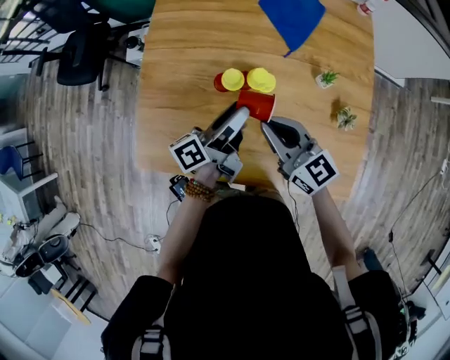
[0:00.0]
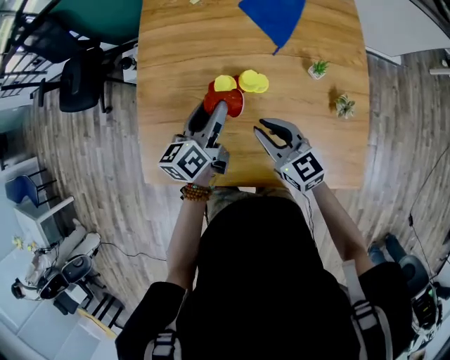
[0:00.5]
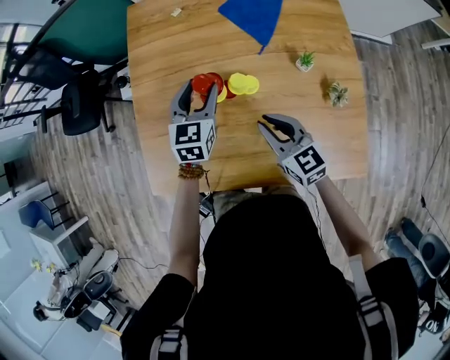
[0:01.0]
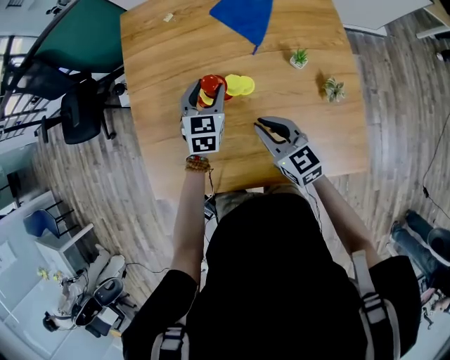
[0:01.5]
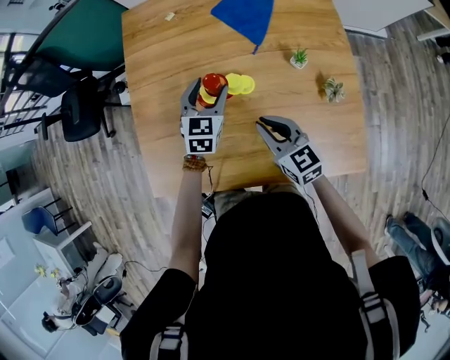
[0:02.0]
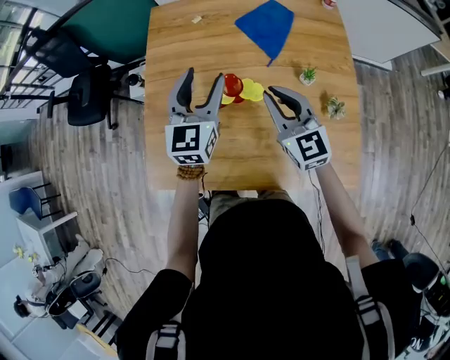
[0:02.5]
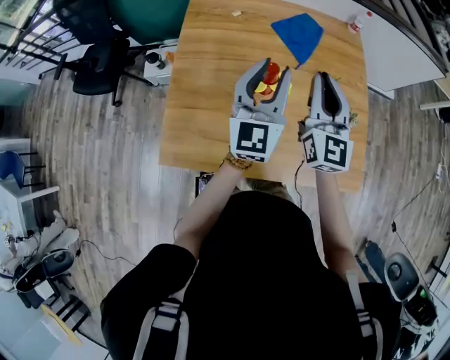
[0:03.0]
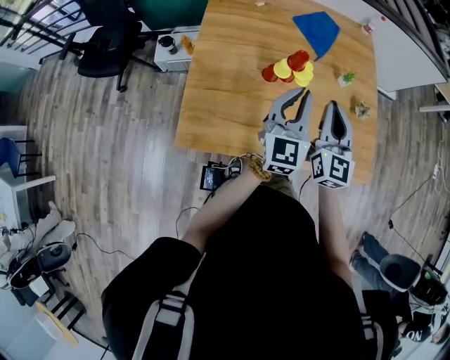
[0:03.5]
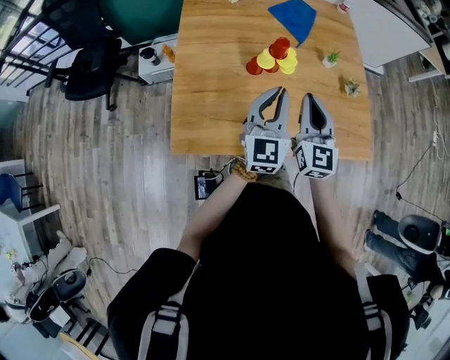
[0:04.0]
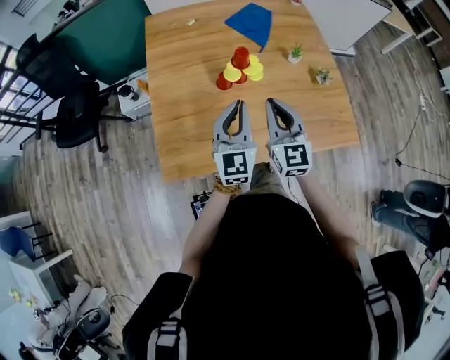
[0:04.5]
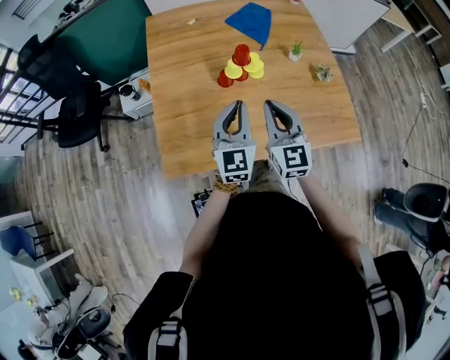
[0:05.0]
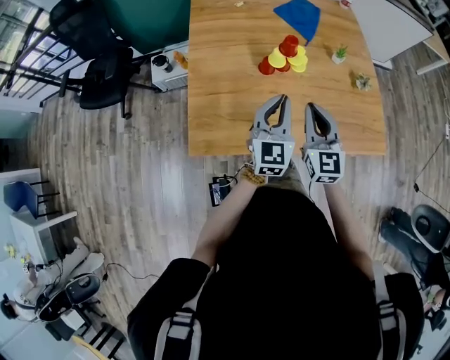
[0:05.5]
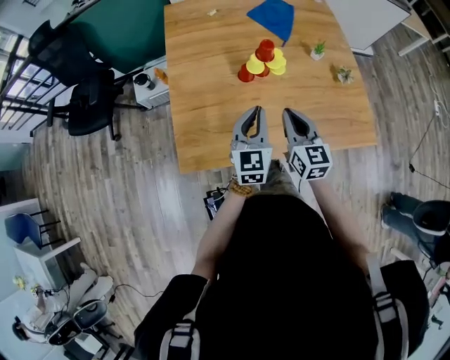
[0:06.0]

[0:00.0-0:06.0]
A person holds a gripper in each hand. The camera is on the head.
0:00.0 to 0:02.0: The right gripper goes some 5 cm downward, and rotates some 20 degrees; the left gripper goes about 10 cm forward, and rotates around the line of its fingers by about 80 degrees, clockwise from behind.
0:02.0 to 0:04.0: The left gripper travels backward and upward by approximately 25 cm, angles its fingers upward, by approximately 30 degrees, and closes up. Meanwhile the right gripper shifts some 20 cm upward, to the left and backward, and rotates roughly 40 degrees.
0:04.0 to 0:06.0: Both grippers travel together downward, some 10 cm.

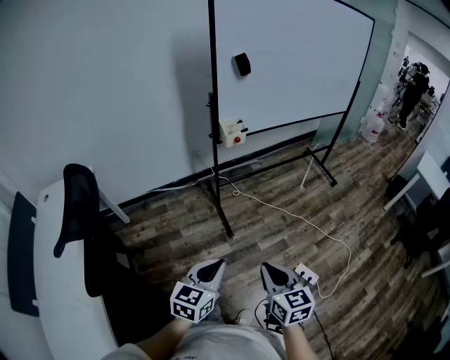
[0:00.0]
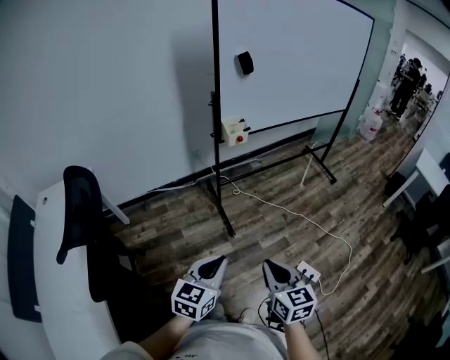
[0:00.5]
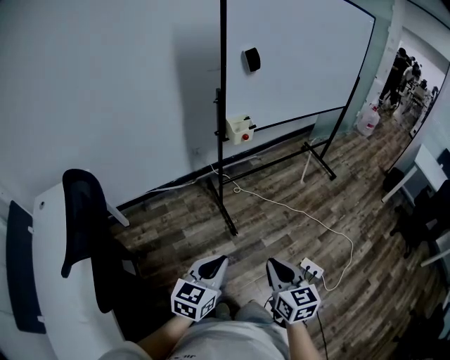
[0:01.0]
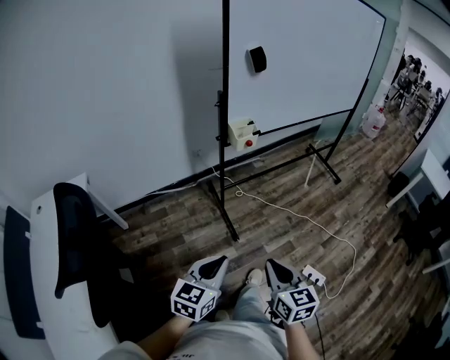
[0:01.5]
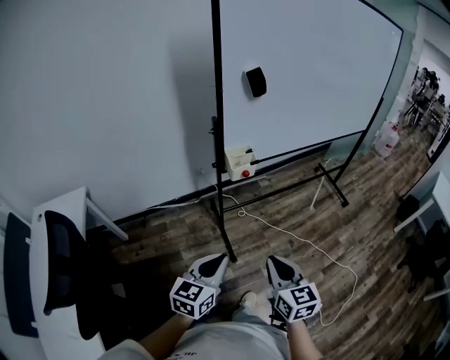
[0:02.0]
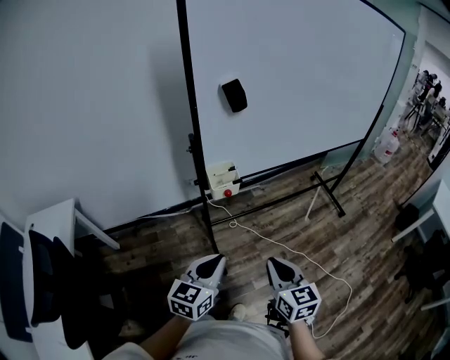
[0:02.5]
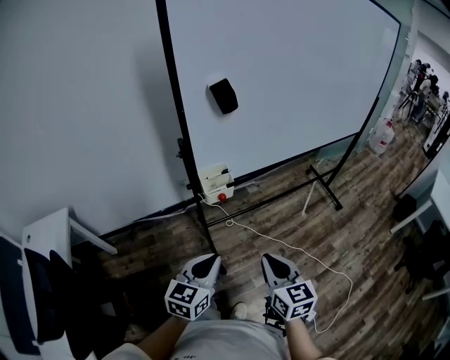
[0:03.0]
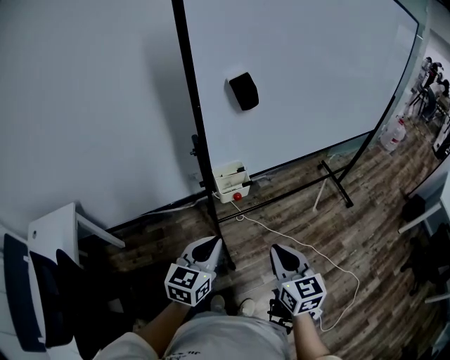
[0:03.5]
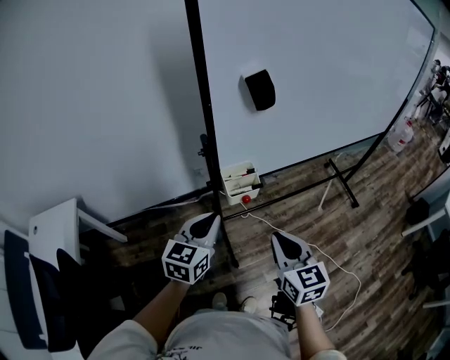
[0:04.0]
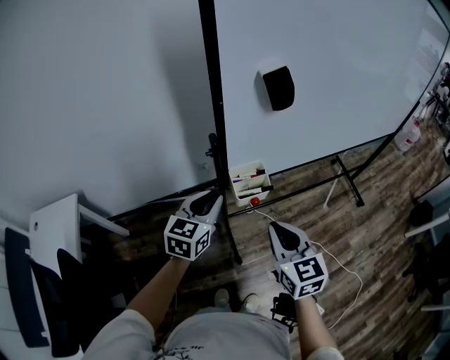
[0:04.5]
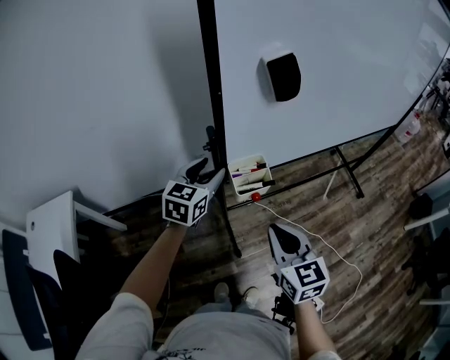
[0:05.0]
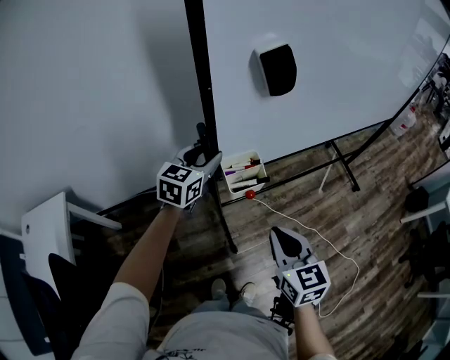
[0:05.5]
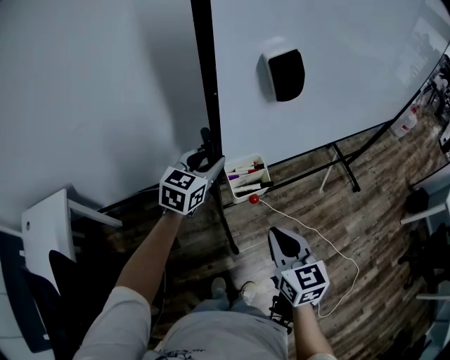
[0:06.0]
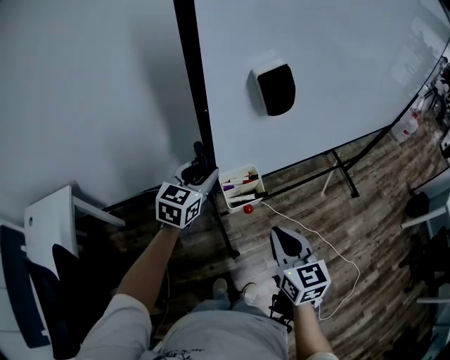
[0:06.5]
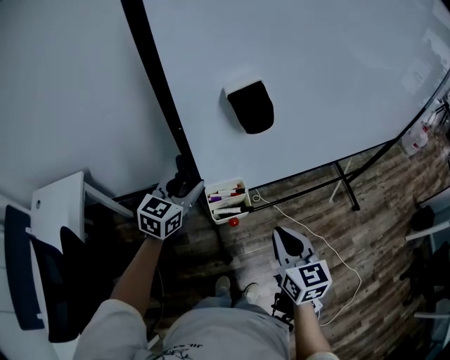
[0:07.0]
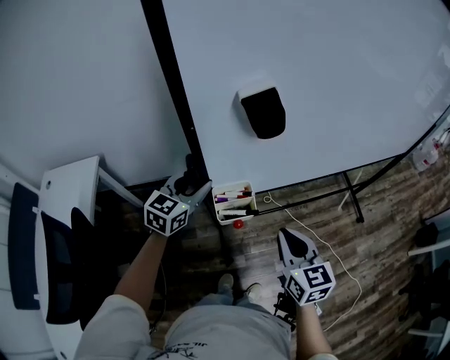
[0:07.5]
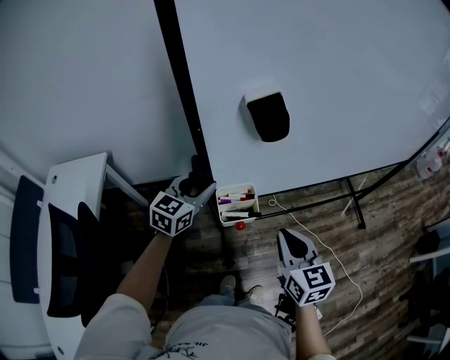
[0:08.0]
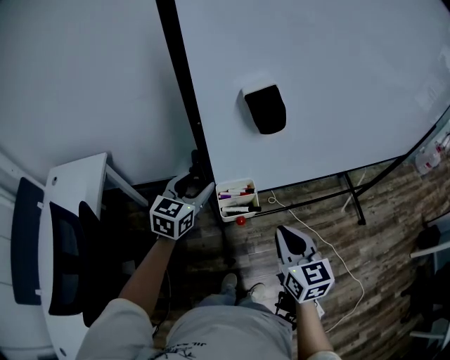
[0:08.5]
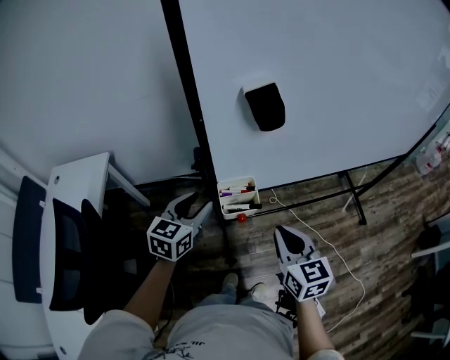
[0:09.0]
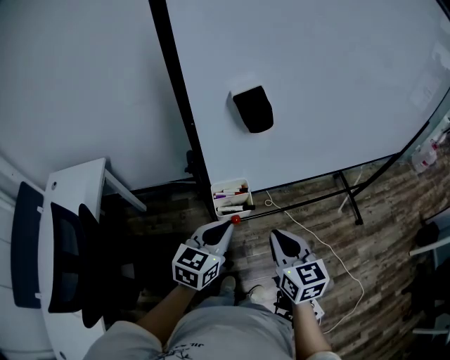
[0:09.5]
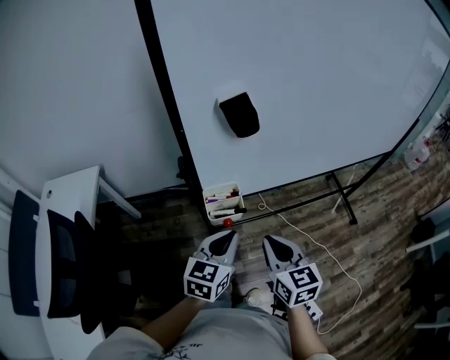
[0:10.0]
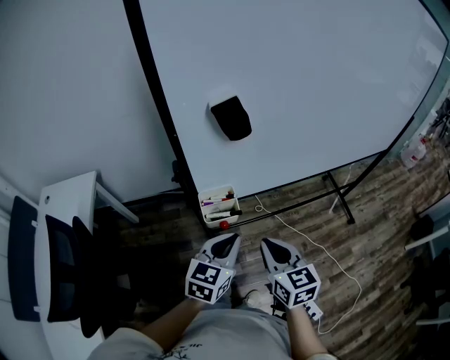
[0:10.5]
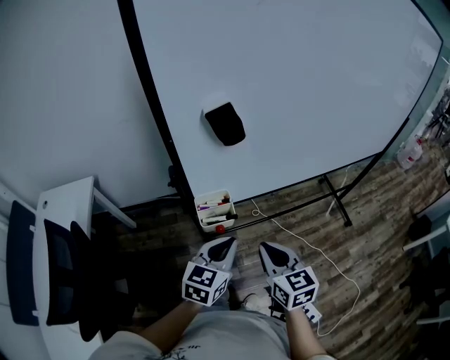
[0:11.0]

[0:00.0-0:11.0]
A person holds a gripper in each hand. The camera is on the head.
0:00.0 to 0:02.0: Both grippers travel together forward, roughly 25 cm.
0:02.0 to 0:03.5: The grippers both shift forward by about 20 cm.
0:03.5 to 0:05.5: The left gripper is displaced forward by roughly 30 cm, and opens; the right gripper shifts some 10 cm forward.
0:05.5 to 0:07.5: The left gripper moves backward and to the left, some 25 cm. The right gripper is displaced to the left and backward by some 10 cm.
0:07.5 to 0:09.0: The left gripper goes some 10 cm backward.
0:09.0 to 0:11.0: The left gripper heads to the right and backward, covering about 20 cm, and closes up.

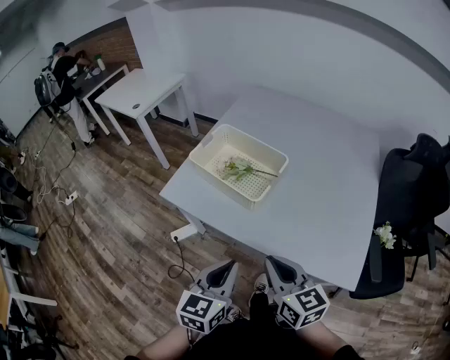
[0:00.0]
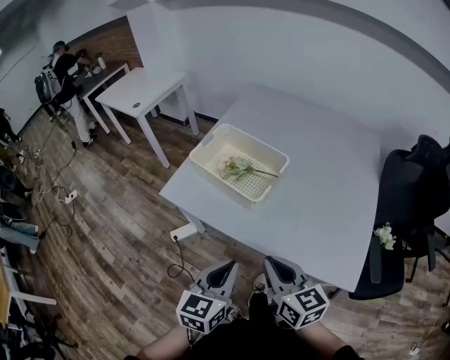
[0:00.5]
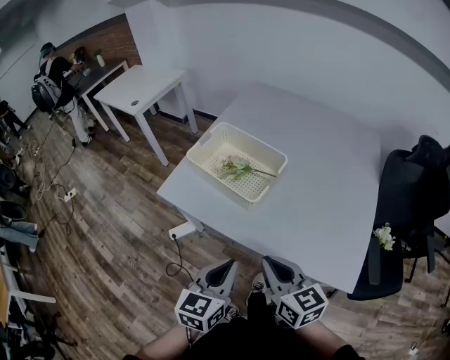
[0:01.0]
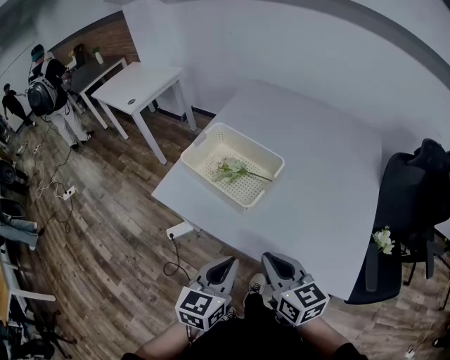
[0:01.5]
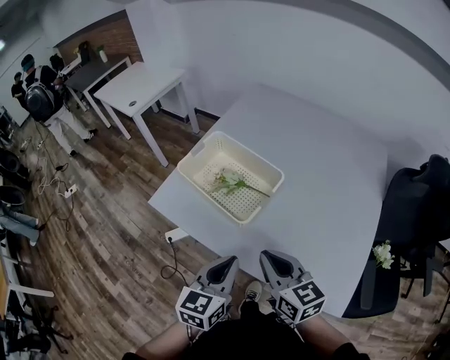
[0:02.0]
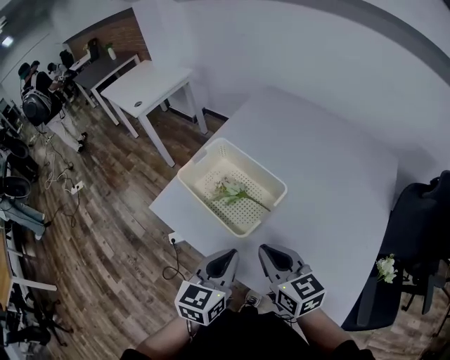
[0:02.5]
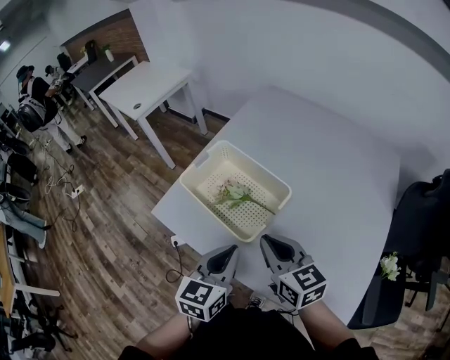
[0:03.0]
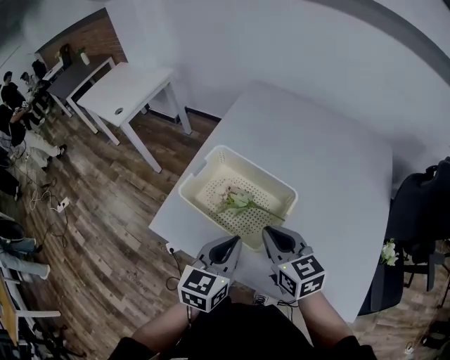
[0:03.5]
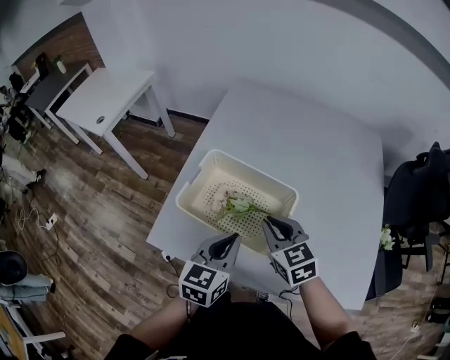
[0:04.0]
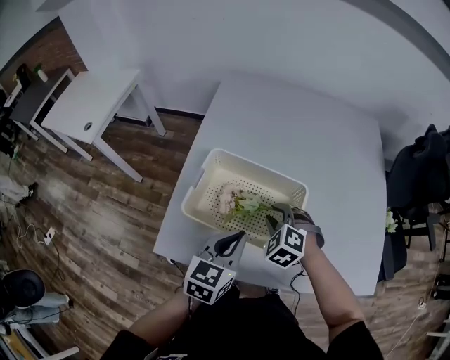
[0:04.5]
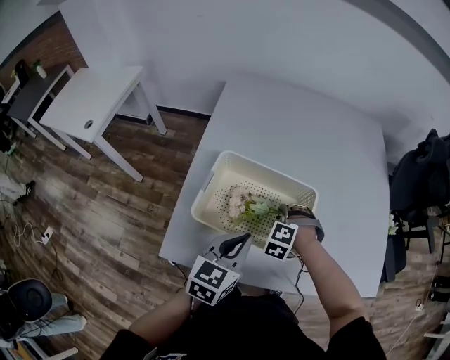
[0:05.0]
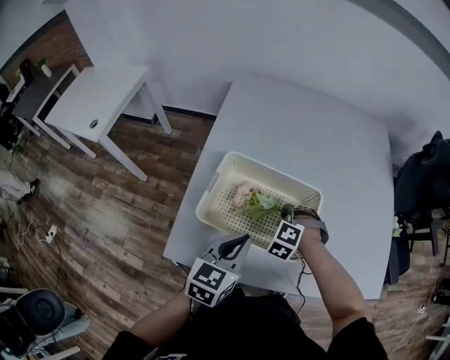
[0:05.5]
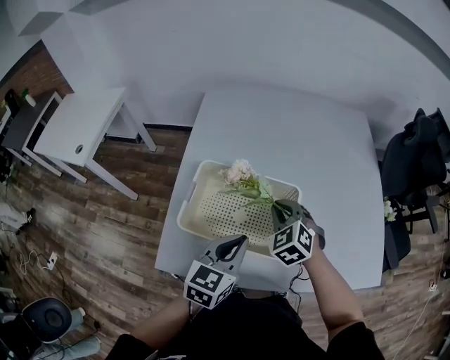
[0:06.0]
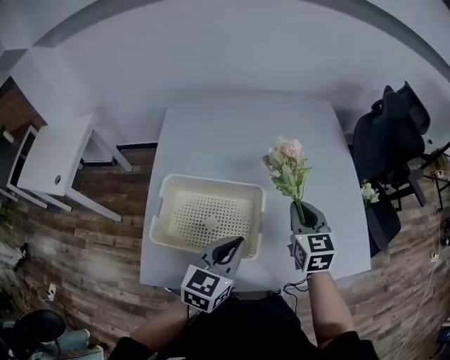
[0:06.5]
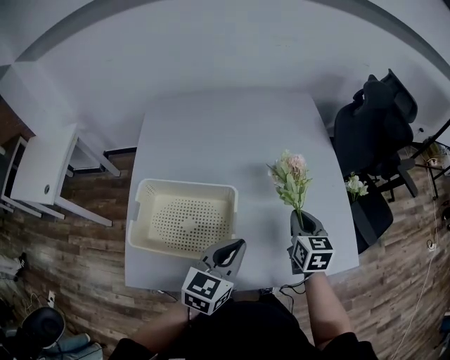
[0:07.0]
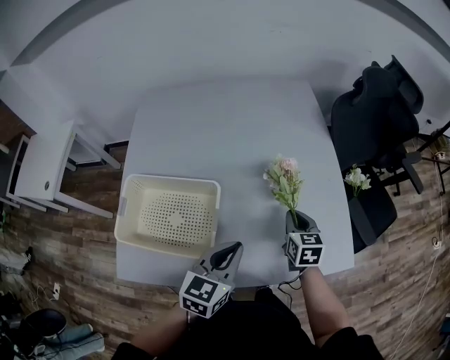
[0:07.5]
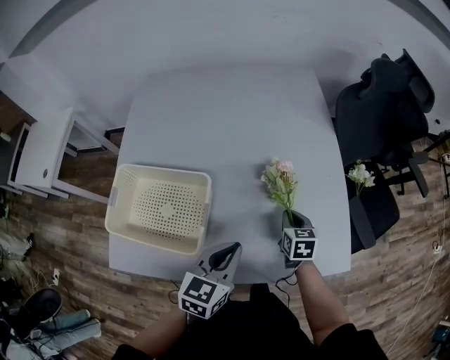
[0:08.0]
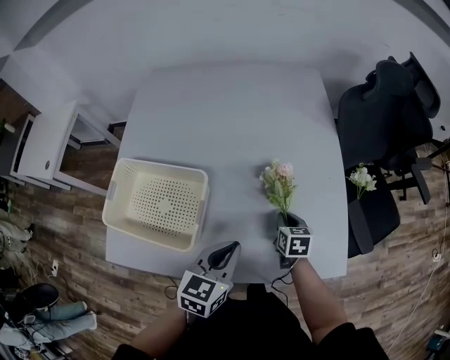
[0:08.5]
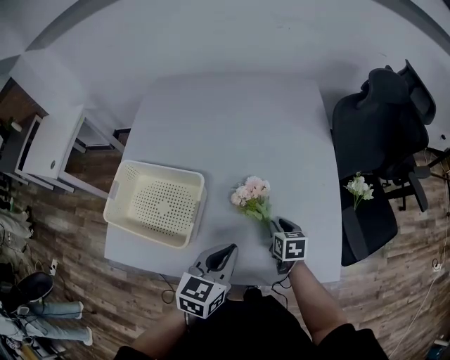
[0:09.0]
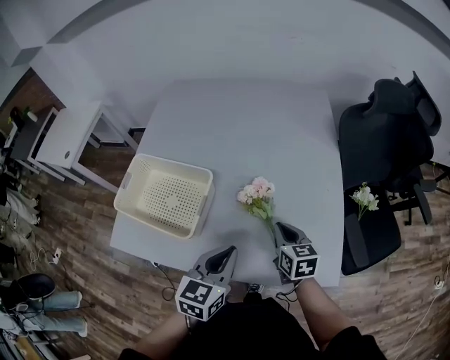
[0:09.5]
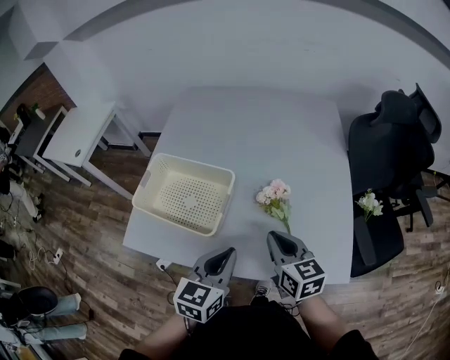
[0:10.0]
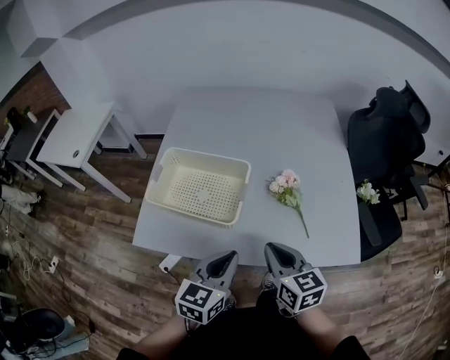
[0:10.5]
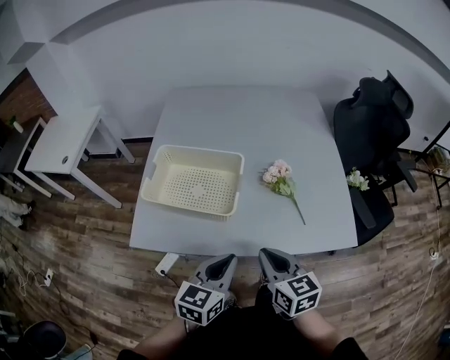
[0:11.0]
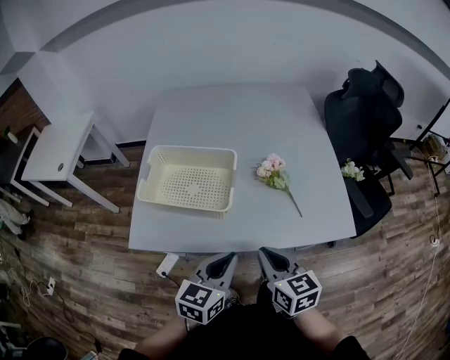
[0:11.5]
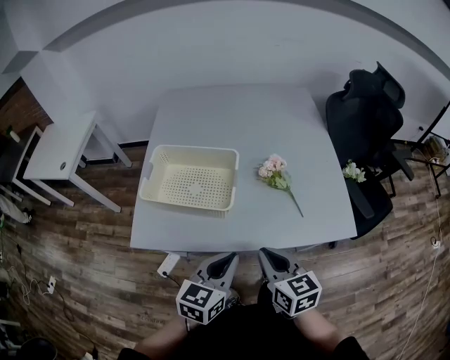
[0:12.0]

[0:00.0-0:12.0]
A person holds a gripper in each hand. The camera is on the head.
0:00.0 to 0:02.0: The right gripper goes some 10 cm forward, while the left gripper moves forward and to the right, approximately 10 cm.
0:02.0 to 0:04.0: The two grippers go roughly 20 cm forward. The right gripper turns by approximately 20 degrees.
0:04.0 to 0:06.0: The right gripper reaches approximately 15 cm downward, then returns, turns by approximately 30 degrees, and opens, then closes once more.
0:06.0 to 0:08.0: The grippers both shift to the right by roughly 30 cm. The right gripper rotates around the line of its fingers by some 60 degrees, clockwise from behind.
0:08.0 to 0:10.0: The left gripper is displaced backward and upward by approximately 10 cm. Meanwhile the right gripper shifts some 25 cm upward, backward and to the left, and swivels roughly 30 degrees.
0:10.0 to 0:12.0: Both grippers travel together backward and to the left, roughly 15 cm.
